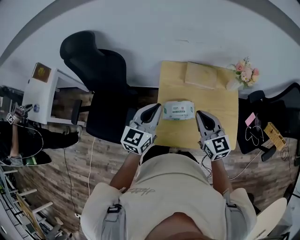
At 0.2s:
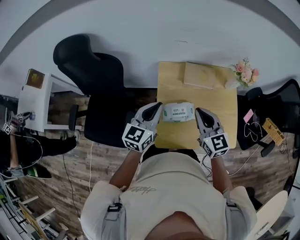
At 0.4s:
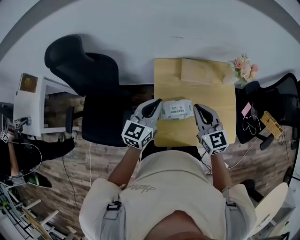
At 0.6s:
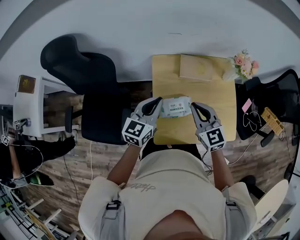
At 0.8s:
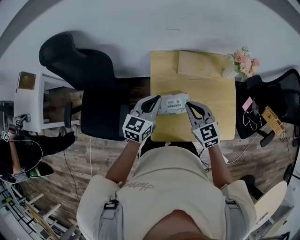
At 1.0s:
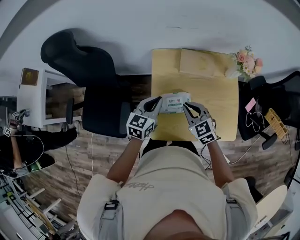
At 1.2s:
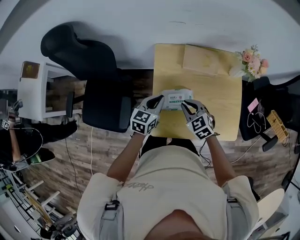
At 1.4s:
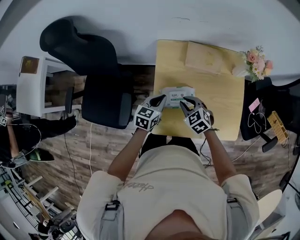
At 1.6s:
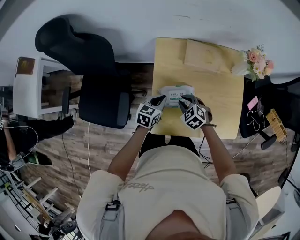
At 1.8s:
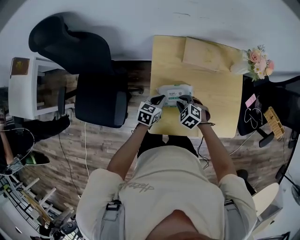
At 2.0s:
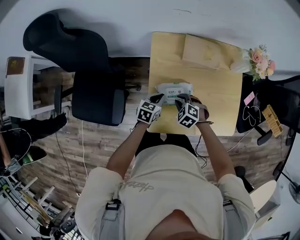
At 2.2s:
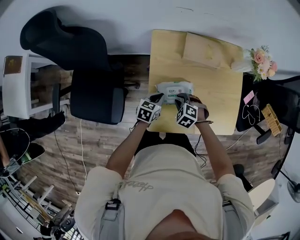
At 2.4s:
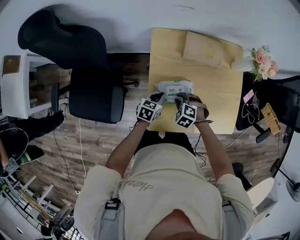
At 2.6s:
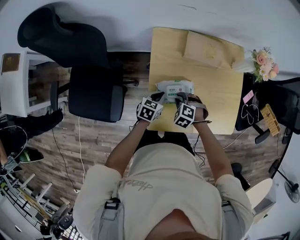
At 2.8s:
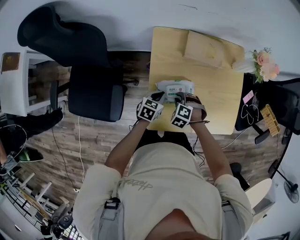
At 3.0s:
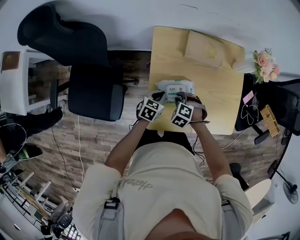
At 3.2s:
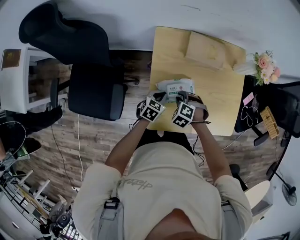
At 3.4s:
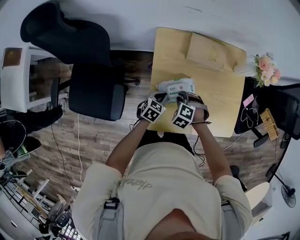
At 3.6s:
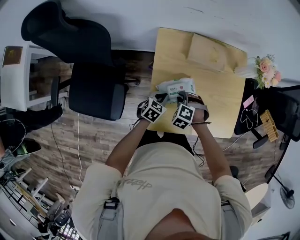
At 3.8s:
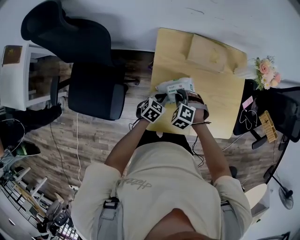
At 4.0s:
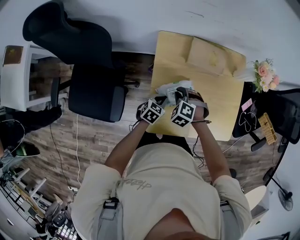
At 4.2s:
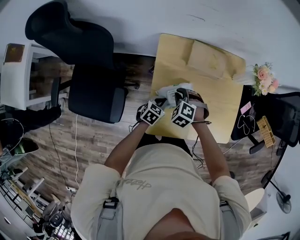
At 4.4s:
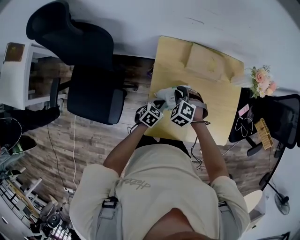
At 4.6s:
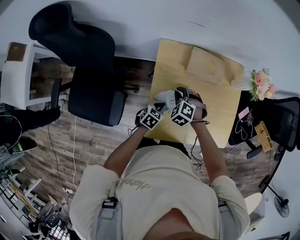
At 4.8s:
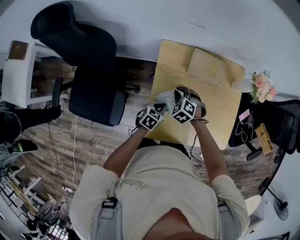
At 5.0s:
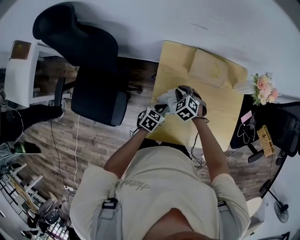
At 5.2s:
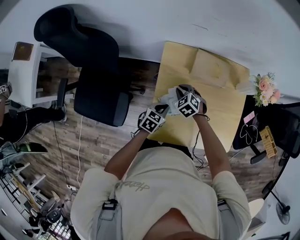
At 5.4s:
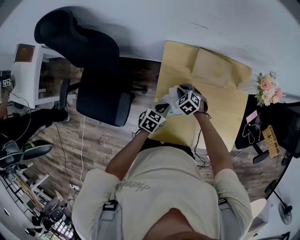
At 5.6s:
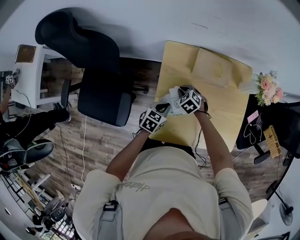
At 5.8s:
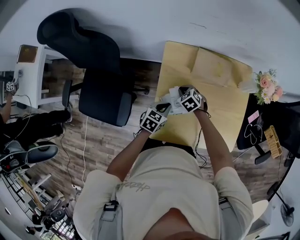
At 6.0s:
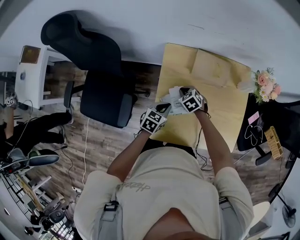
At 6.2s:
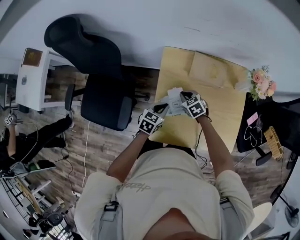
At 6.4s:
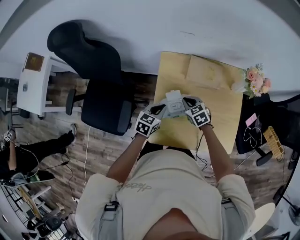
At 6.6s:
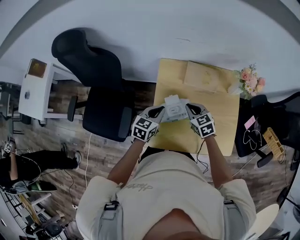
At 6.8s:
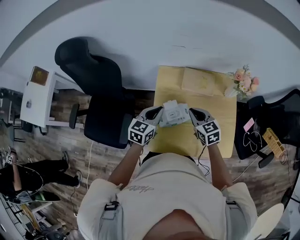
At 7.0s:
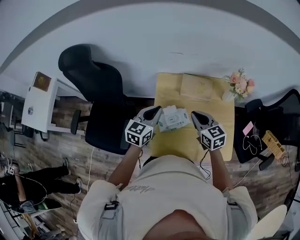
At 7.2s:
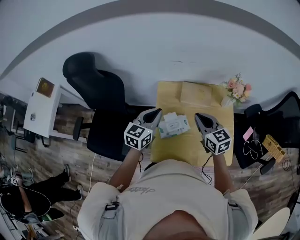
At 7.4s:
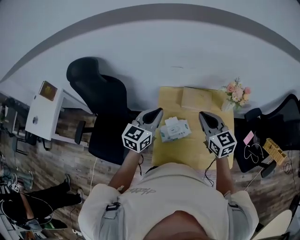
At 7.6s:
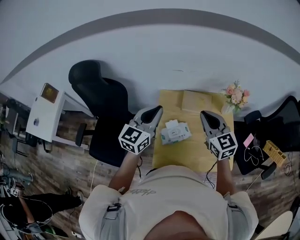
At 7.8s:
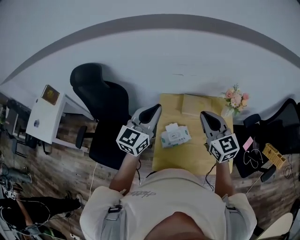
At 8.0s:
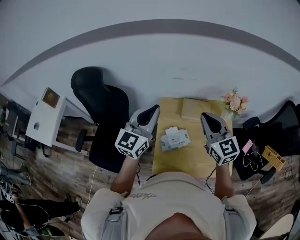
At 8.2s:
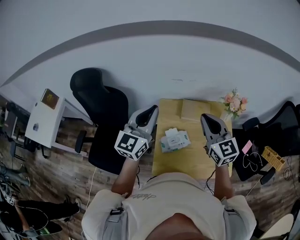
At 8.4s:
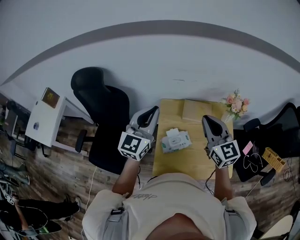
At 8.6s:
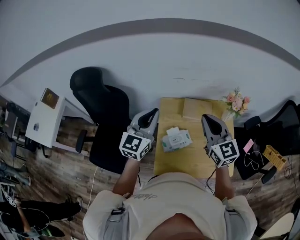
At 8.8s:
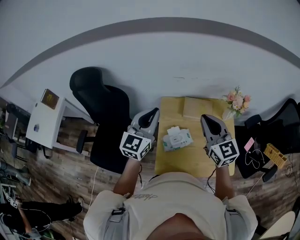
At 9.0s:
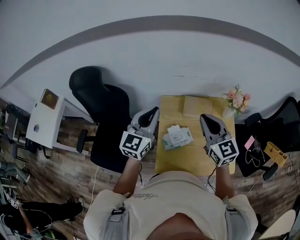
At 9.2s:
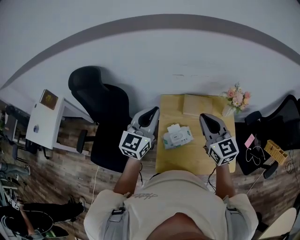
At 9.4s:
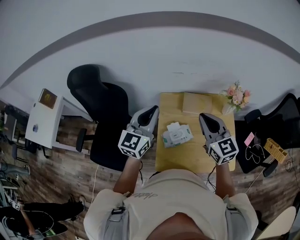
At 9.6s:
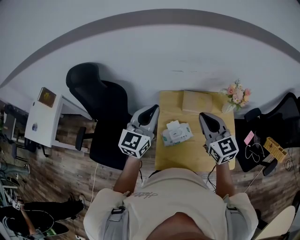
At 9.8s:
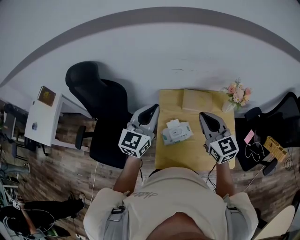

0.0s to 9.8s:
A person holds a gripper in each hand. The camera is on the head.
0.0s to 1.4s: Both grippers travel together downward, roughly 20 cm. The left gripper changes its angle by about 30 degrees; the right gripper tips its fingers downward by roughly 30 degrees.
1.4s to 2.8s: Both grippers move downward, about 10 cm. The right gripper turns by roughly 40 degrees.
2.8s to 4.2s: The right gripper ends up some 10 cm from where it was.
4.2s to 5.6s: The right gripper shifts roughly 10 cm downward and forward, and rotates about 20 degrees.
5.6s to 7.0s: Both grippers travel together upward, some 25 cm. The left gripper rotates approximately 30 degrees. Meanwhile the right gripper angles its fingers upward, by some 40 degrees.
7.0s to 8.4s: The grippers both shift upward by approximately 20 cm. The right gripper swivels approximately 30 degrees. Meanwhile the left gripper turns by approximately 30 degrees.
8.4s to 9.8s: There are only small adjustments of the grippers.

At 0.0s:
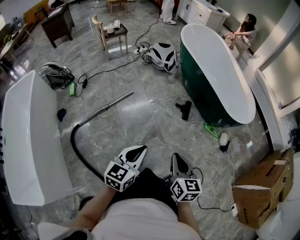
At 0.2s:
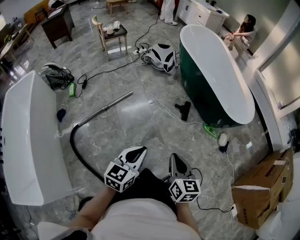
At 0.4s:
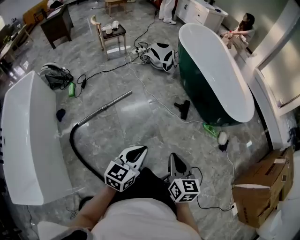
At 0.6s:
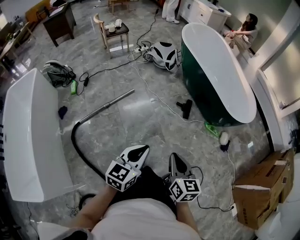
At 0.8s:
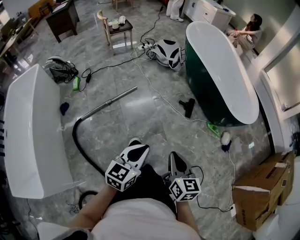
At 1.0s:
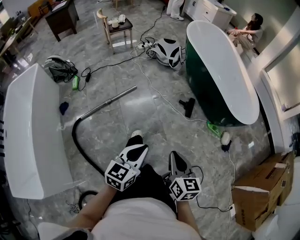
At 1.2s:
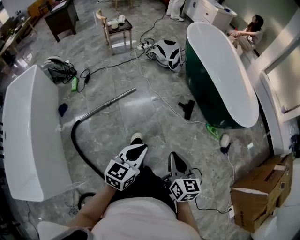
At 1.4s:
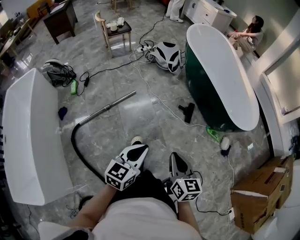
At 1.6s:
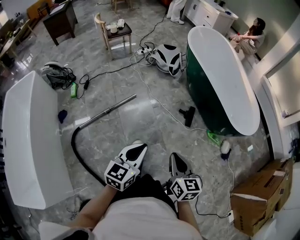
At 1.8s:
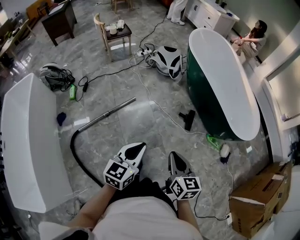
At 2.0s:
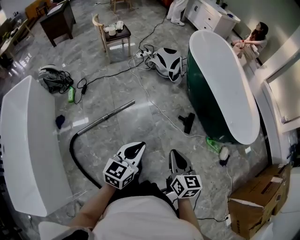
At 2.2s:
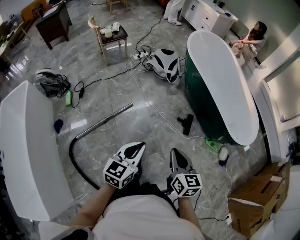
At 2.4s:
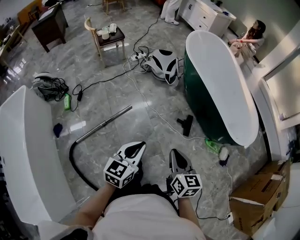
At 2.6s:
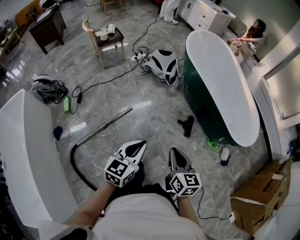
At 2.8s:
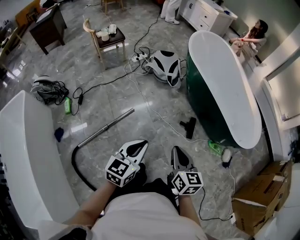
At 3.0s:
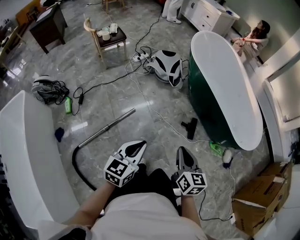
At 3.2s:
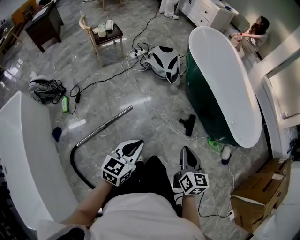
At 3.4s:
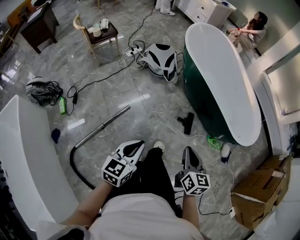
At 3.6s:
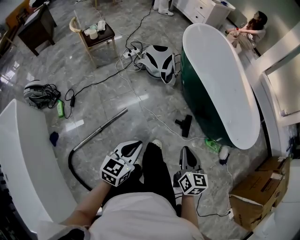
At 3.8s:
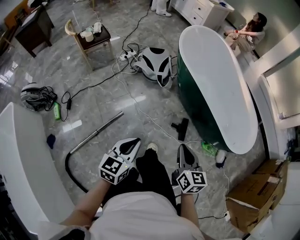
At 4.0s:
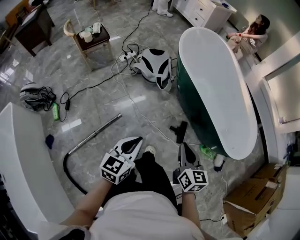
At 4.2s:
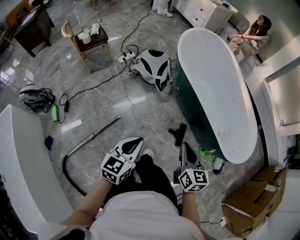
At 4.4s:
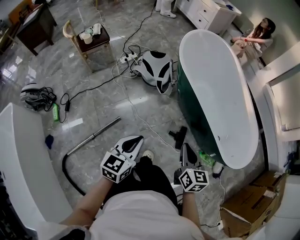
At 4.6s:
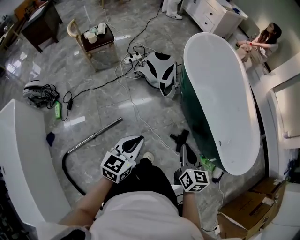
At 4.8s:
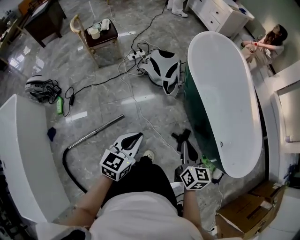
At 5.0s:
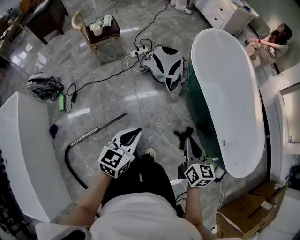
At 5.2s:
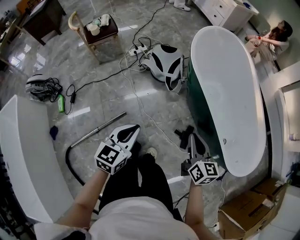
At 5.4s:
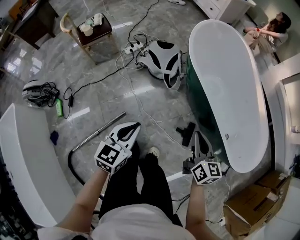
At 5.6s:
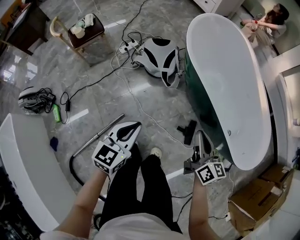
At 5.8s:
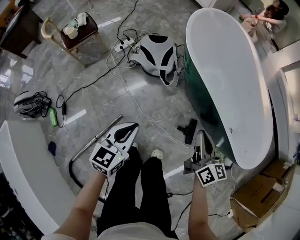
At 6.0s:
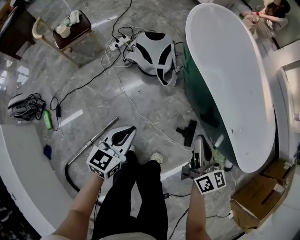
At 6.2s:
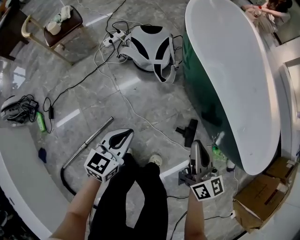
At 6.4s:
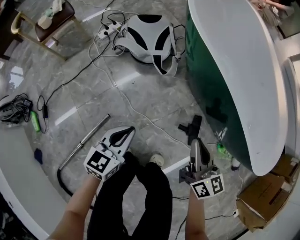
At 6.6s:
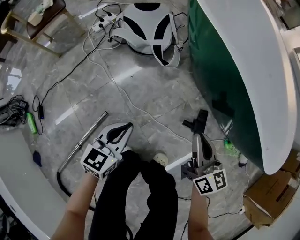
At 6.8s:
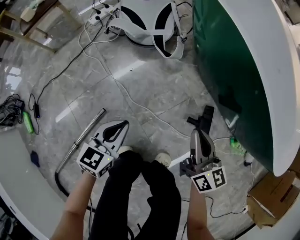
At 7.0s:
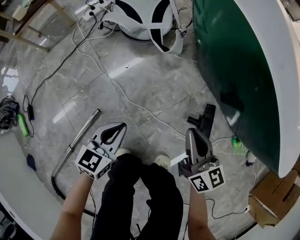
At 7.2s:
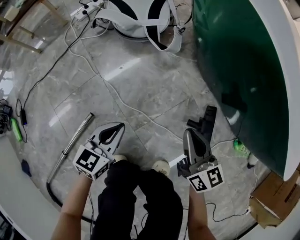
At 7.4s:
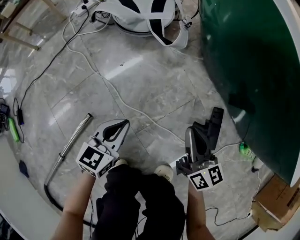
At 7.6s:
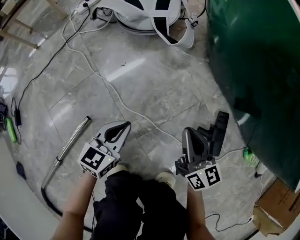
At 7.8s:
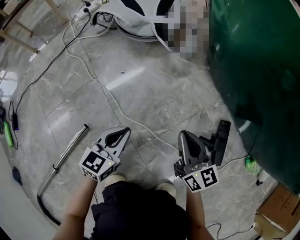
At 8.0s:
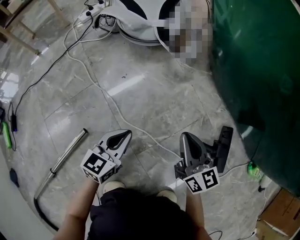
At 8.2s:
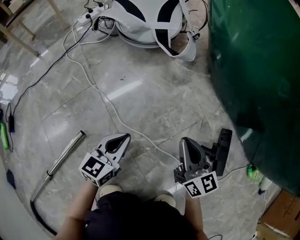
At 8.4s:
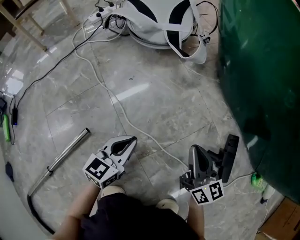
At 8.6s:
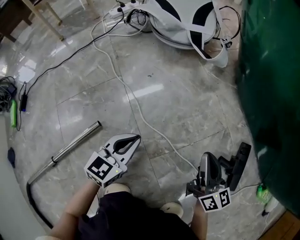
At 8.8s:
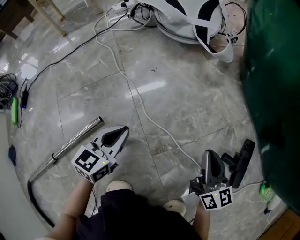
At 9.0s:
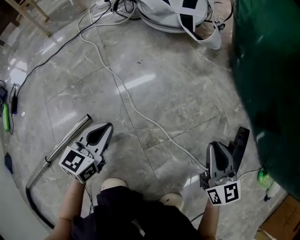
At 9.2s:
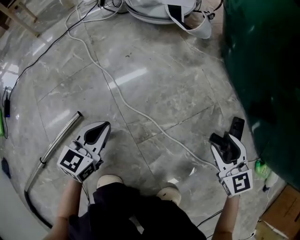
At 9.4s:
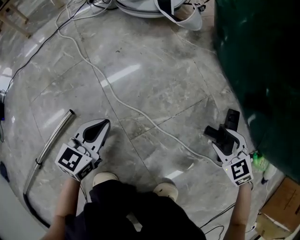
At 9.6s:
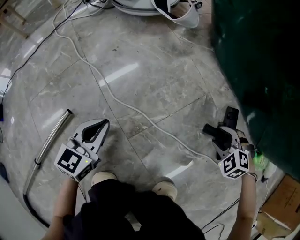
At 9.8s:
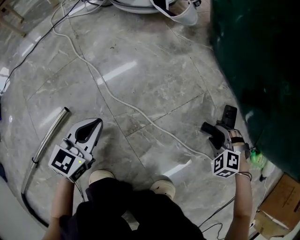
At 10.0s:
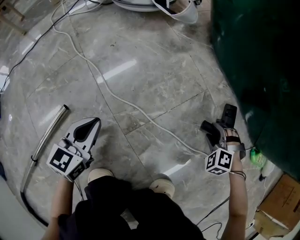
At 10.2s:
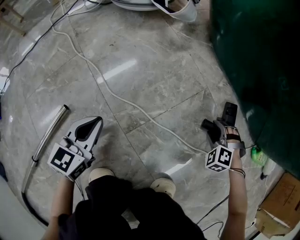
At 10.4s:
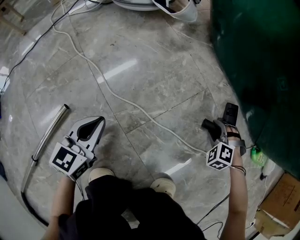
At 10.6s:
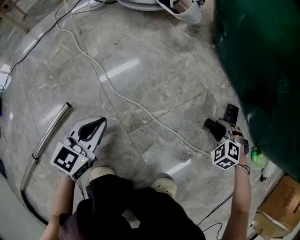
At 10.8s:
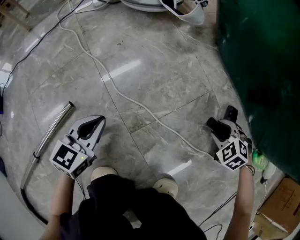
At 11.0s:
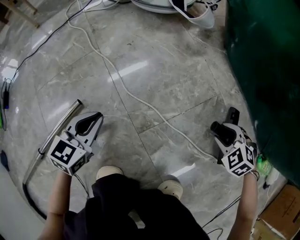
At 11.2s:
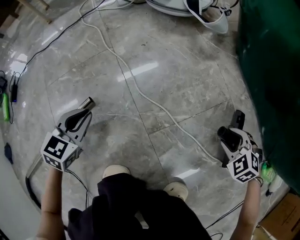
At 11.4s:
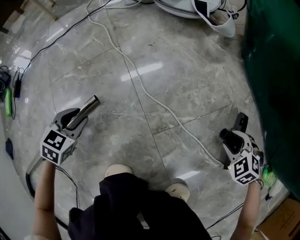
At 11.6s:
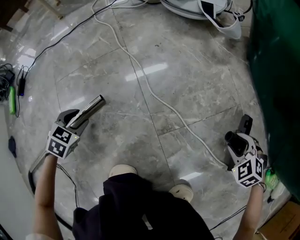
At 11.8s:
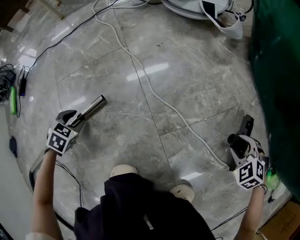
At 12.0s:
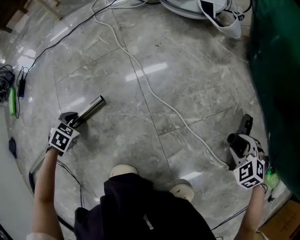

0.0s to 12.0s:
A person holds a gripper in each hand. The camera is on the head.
0.0s to 1.6s: Both grippers move forward, about 10 cm.
1.6s to 3.0s: The left gripper moves forward and to the left, roughly 25 cm, while the right gripper heads forward, covering approximately 20 cm.
3.0s to 4.4s: Both grippers move forward, approximately 25 cm.
4.4s to 6.0s: The right gripper goes roughly 15 cm forward and downward, and turns by approximately 20 degrees; the left gripper heads forward, downward and to the left, covering about 20 cm.
6.0s to 7.6s: Both grippers travel together downward, about 50 cm.
7.6s to 9.0s: The left gripper is displaced to the left and downward by roughly 15 cm. The right gripper heads downward, covering some 10 cm.
9.0s to 10.4s: The right gripper goes some 25 cm downward and to the right, angles its fingers downward, by roughly 50 degrees, and opens, while the left gripper is displaced to the right by some 5 cm.
10.4s to 12.0s: The left gripper moves about 30 cm, points its fingers approximately 50 degrees further downward, and opens. Meanwhile the right gripper ends up about 10 cm from where it was.

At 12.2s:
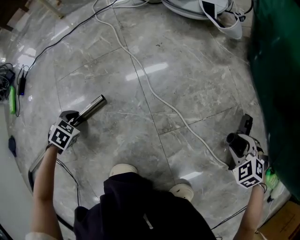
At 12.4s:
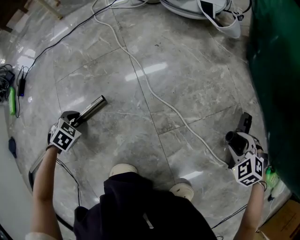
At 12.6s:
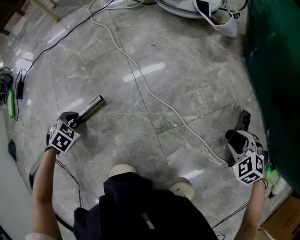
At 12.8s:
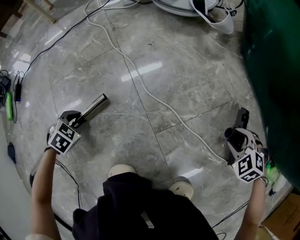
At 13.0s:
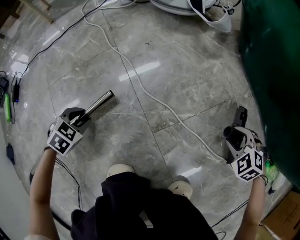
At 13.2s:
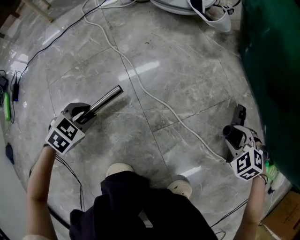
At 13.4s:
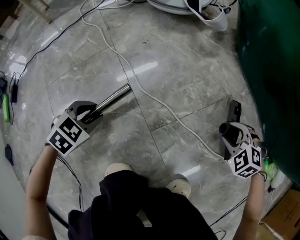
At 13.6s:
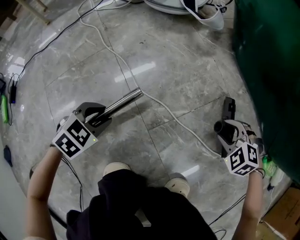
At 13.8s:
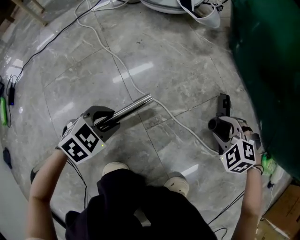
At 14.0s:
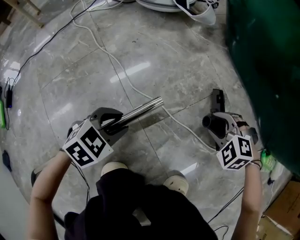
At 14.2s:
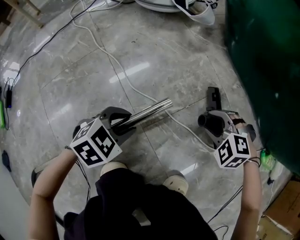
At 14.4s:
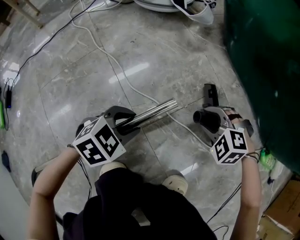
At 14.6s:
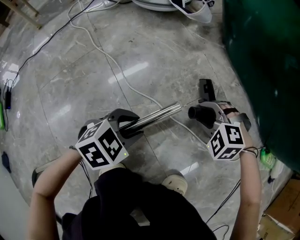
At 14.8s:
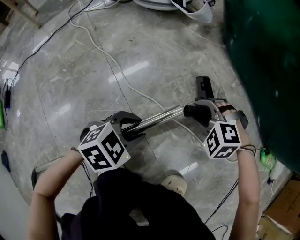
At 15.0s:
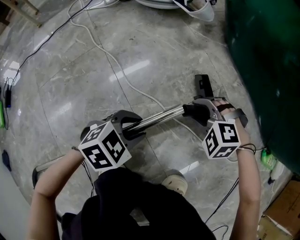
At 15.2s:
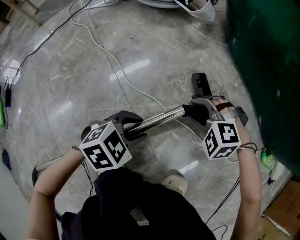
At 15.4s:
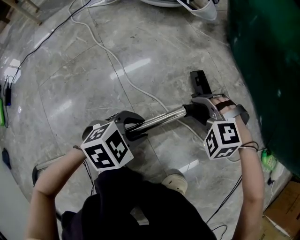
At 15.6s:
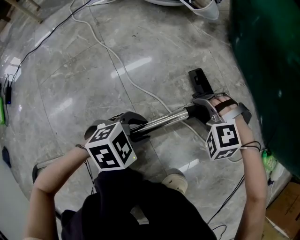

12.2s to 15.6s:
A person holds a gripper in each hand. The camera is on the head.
12.2s to 13.8s: The left gripper moves roughly 25 cm, and rotates approximately 30 degrees.
13.8s to 15.6s: The right gripper heads to the left, covering approximately 10 cm, and changes its angle by some 30 degrees, while the left gripper is displaced to the right by roughly 15 cm.
